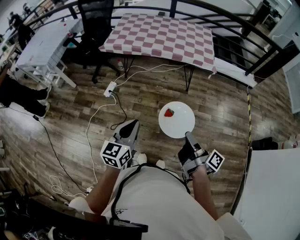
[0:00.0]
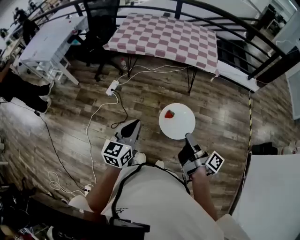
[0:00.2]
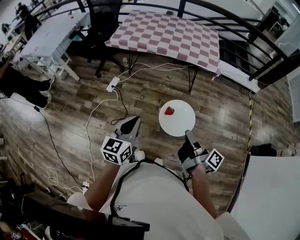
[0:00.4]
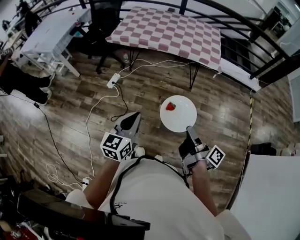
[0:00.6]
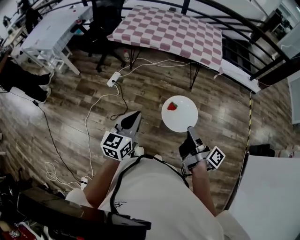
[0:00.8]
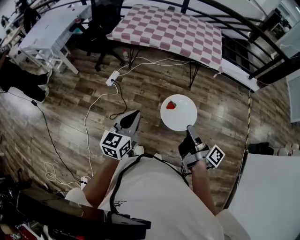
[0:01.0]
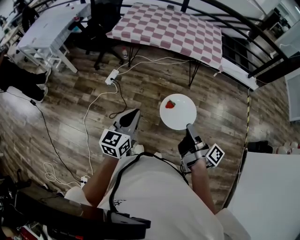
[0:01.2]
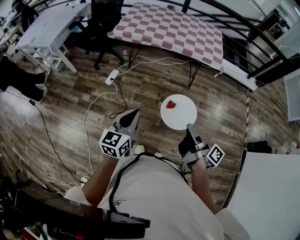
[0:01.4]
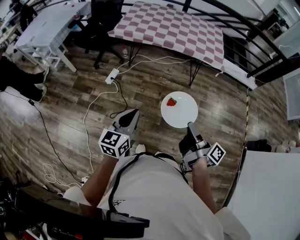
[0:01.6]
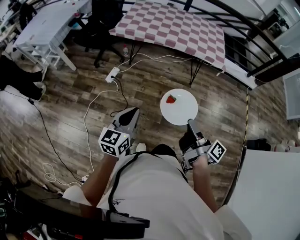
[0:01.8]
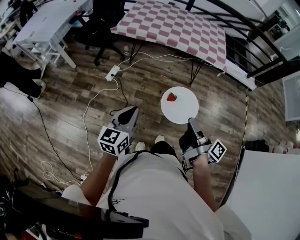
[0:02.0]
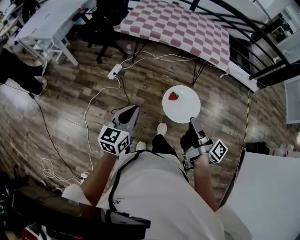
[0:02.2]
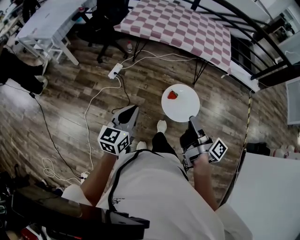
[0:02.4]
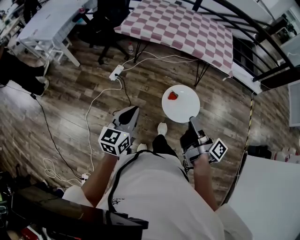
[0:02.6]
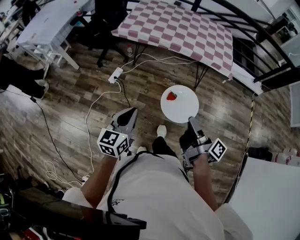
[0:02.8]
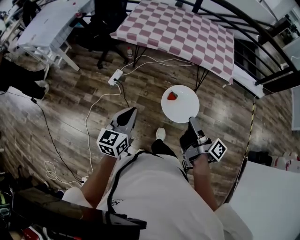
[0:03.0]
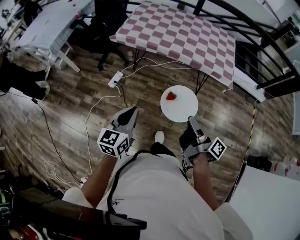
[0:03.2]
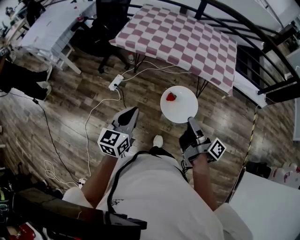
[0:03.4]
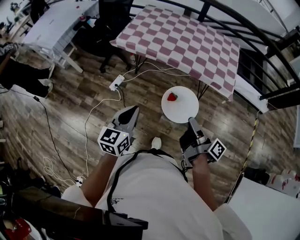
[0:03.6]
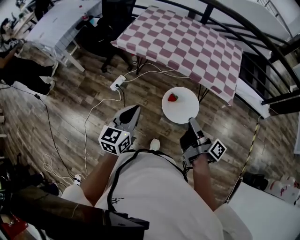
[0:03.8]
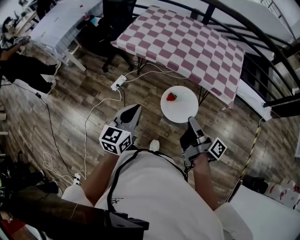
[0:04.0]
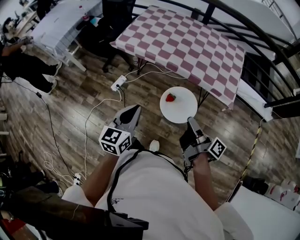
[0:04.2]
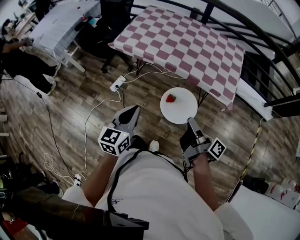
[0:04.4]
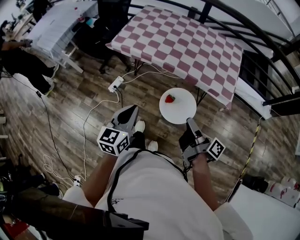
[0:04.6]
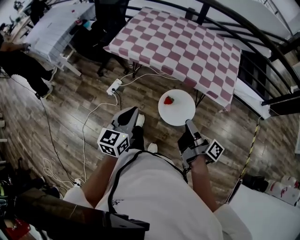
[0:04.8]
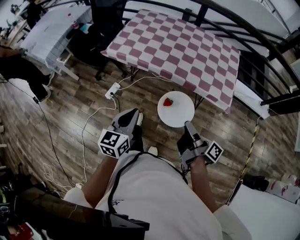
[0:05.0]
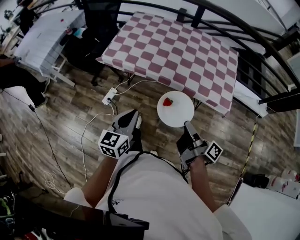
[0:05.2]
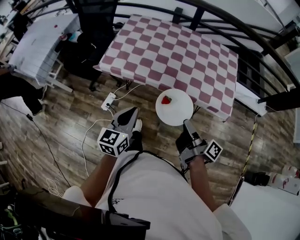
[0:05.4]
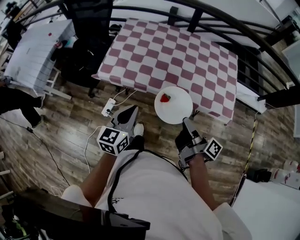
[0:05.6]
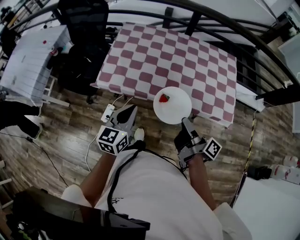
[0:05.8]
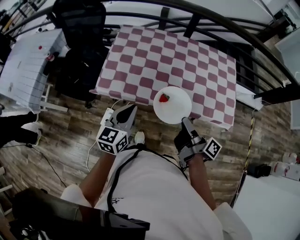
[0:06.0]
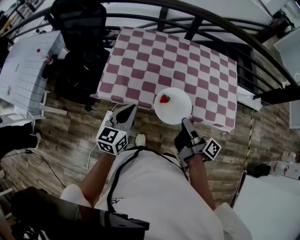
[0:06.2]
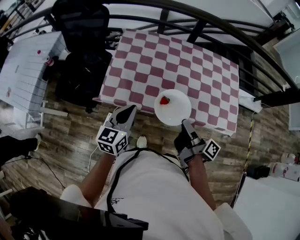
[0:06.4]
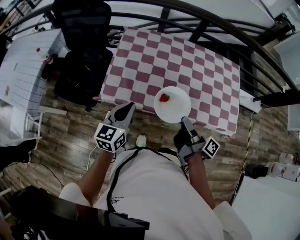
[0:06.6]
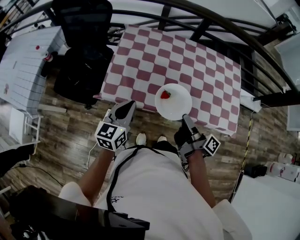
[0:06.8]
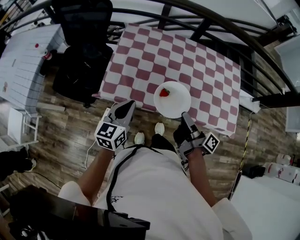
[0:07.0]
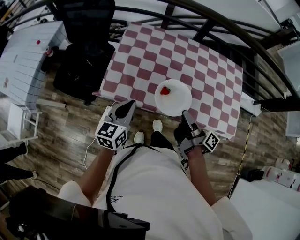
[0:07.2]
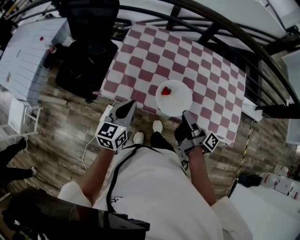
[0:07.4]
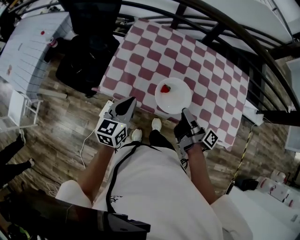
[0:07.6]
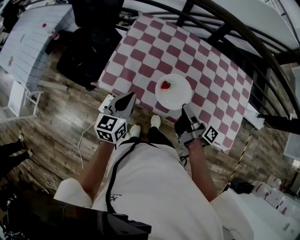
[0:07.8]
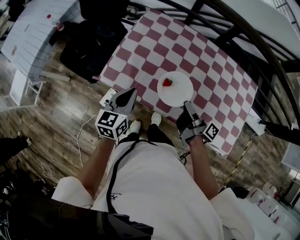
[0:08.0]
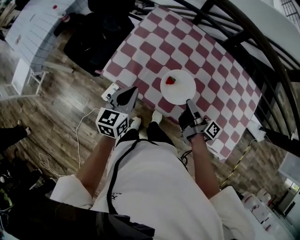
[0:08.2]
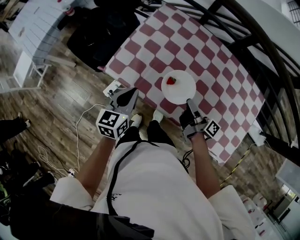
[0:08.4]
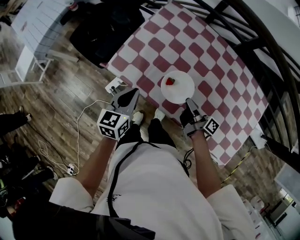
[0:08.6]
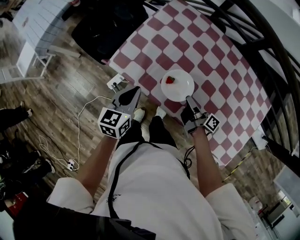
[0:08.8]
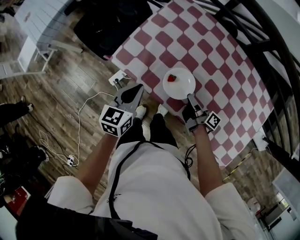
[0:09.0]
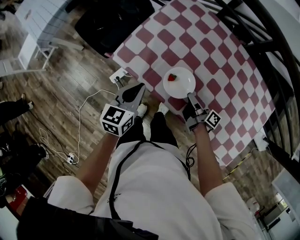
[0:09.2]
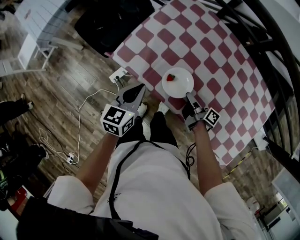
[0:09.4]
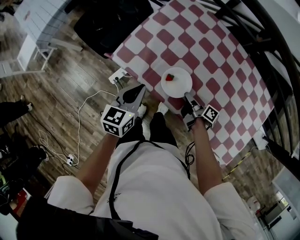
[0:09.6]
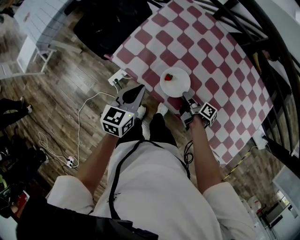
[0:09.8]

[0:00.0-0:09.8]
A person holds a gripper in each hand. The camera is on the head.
0:00.0 to 0:01.4: The left gripper moves about 5 cm.
0:01.4 to 0:02.8: The left gripper changes place by about 10 cm.
0:02.8 to 0:04.2: The left gripper moves some 25 cm.
0:04.2 to 0:05.6: The left gripper ends up some 30 cm from where it was.
0:05.6 to 0:07.0: The left gripper shifts by some 25 cm.
0:07.0 to 0:08.4: The left gripper heads downward, covering roughly 5 cm, and changes its angle by about 20 degrees.

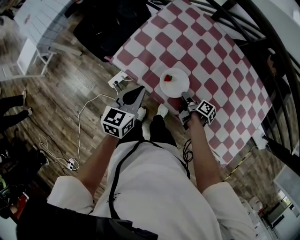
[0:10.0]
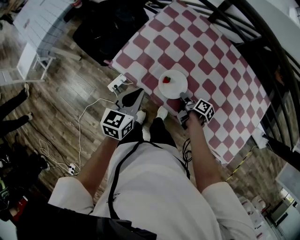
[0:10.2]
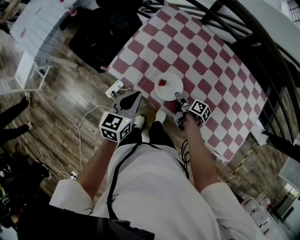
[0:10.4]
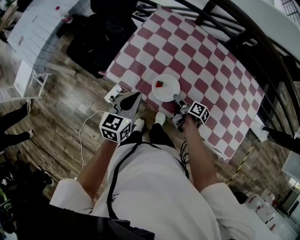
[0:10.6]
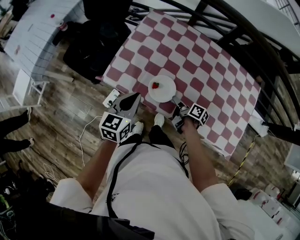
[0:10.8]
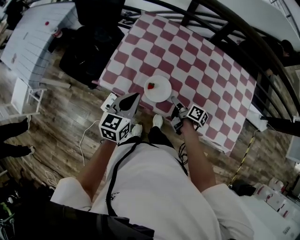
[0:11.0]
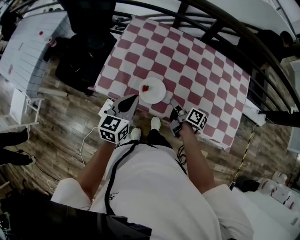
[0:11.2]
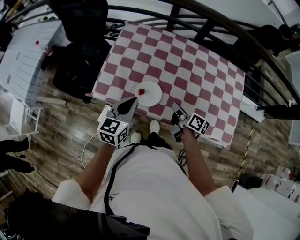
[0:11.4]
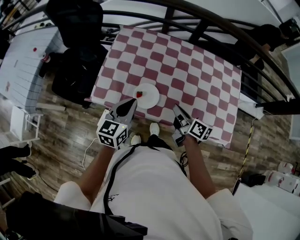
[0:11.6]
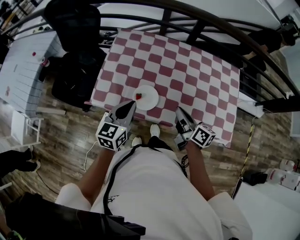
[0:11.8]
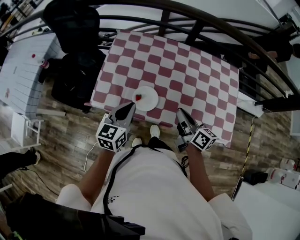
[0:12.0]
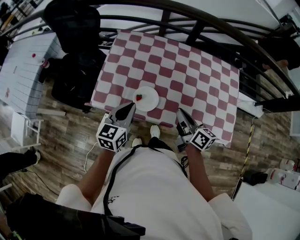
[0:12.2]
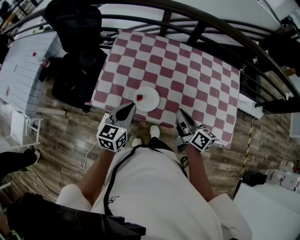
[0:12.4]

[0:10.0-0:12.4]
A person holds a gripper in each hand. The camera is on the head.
0:10.0 to 0:11.2: The left gripper ends up some 10 cm from where it was.

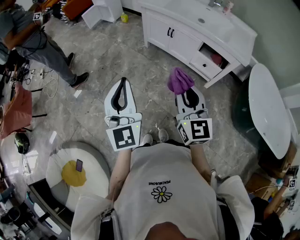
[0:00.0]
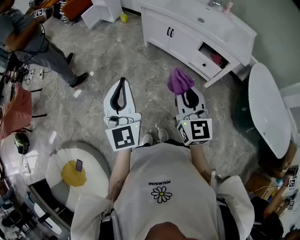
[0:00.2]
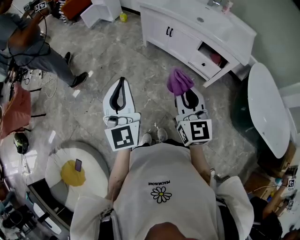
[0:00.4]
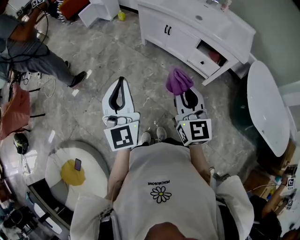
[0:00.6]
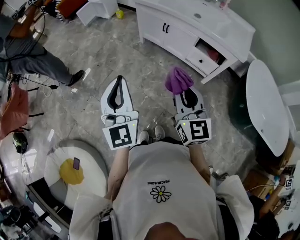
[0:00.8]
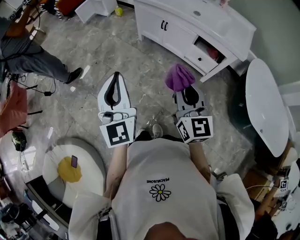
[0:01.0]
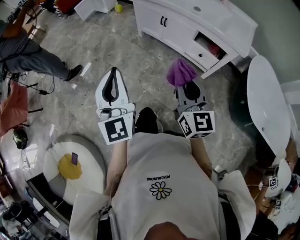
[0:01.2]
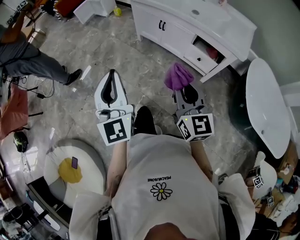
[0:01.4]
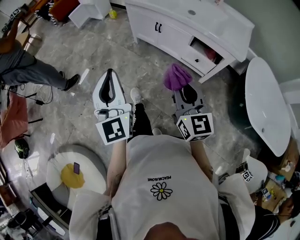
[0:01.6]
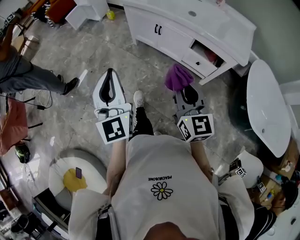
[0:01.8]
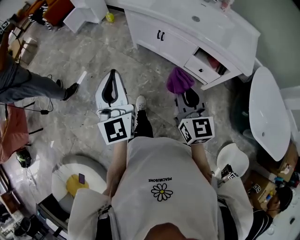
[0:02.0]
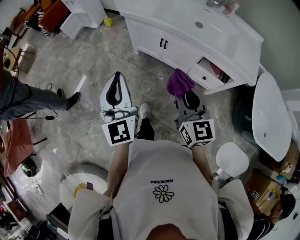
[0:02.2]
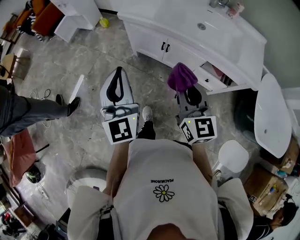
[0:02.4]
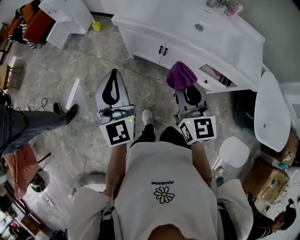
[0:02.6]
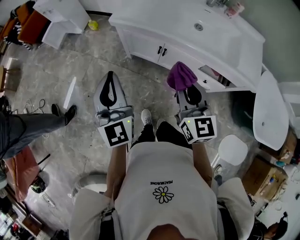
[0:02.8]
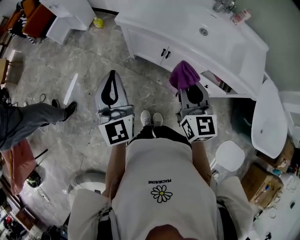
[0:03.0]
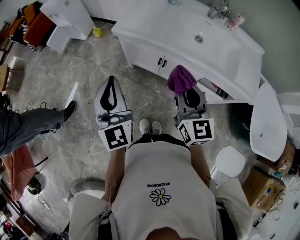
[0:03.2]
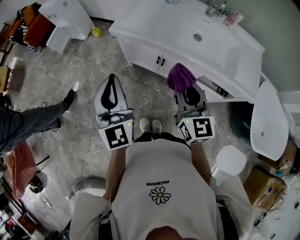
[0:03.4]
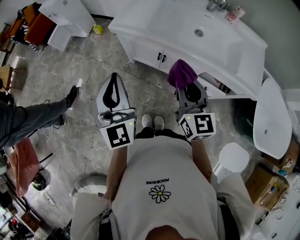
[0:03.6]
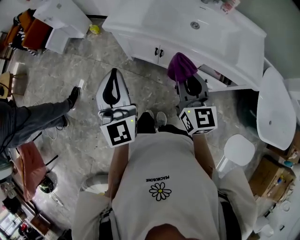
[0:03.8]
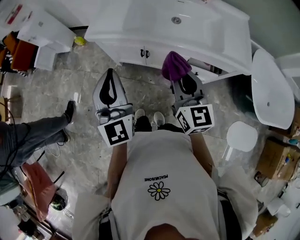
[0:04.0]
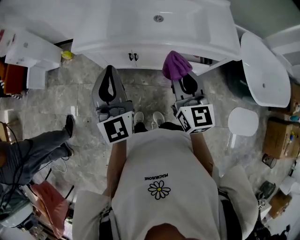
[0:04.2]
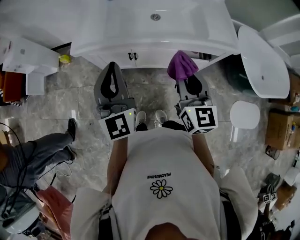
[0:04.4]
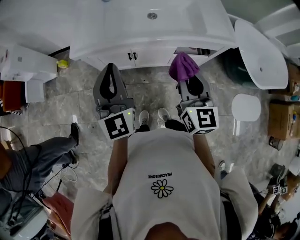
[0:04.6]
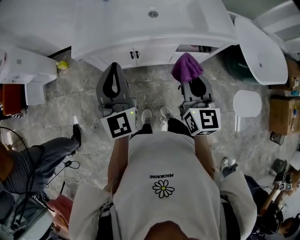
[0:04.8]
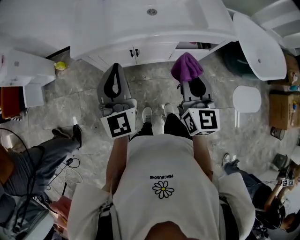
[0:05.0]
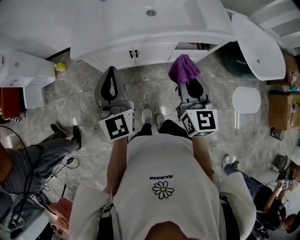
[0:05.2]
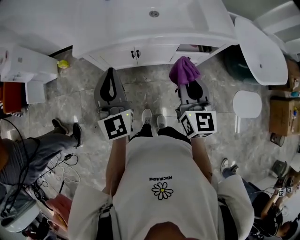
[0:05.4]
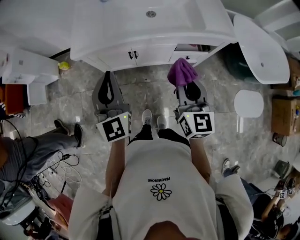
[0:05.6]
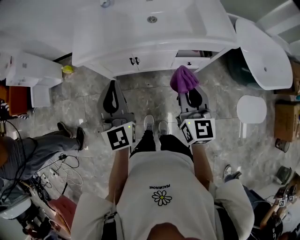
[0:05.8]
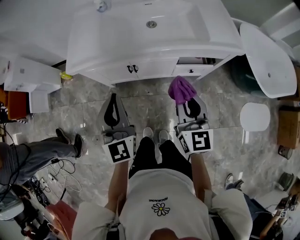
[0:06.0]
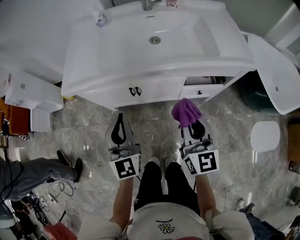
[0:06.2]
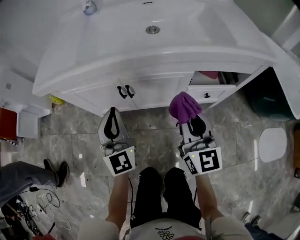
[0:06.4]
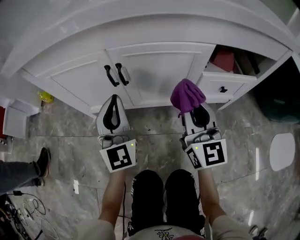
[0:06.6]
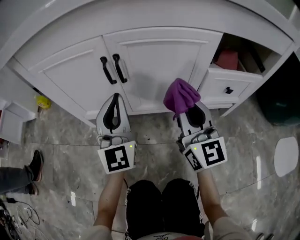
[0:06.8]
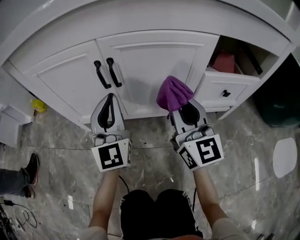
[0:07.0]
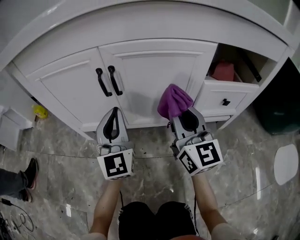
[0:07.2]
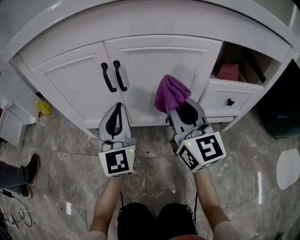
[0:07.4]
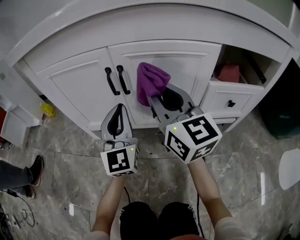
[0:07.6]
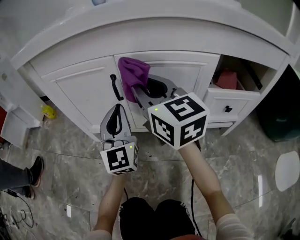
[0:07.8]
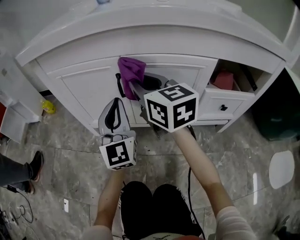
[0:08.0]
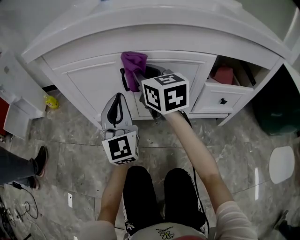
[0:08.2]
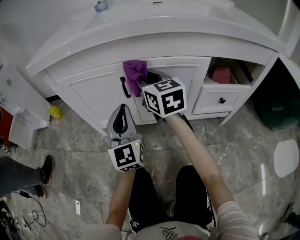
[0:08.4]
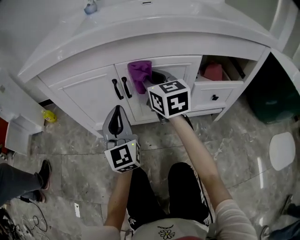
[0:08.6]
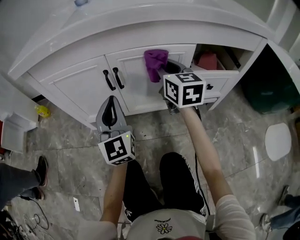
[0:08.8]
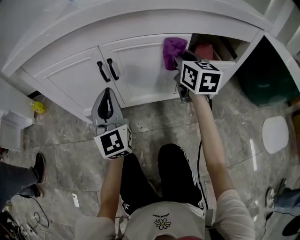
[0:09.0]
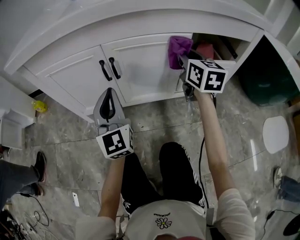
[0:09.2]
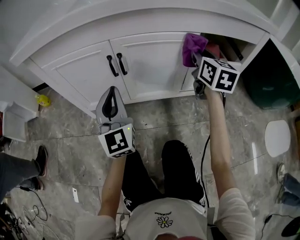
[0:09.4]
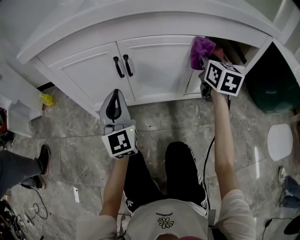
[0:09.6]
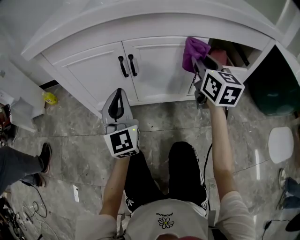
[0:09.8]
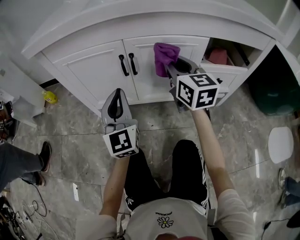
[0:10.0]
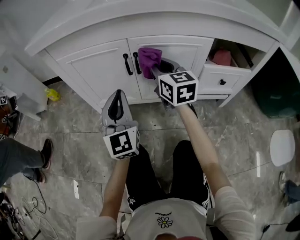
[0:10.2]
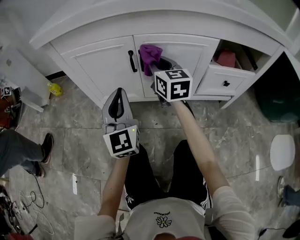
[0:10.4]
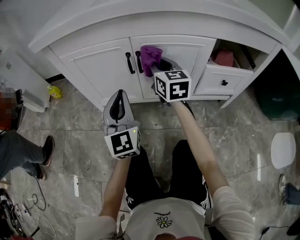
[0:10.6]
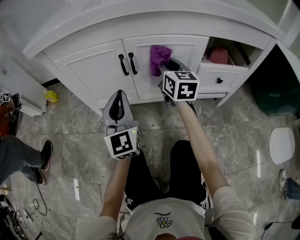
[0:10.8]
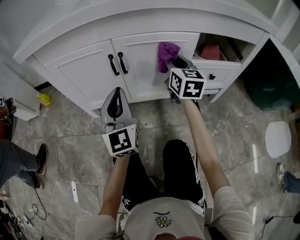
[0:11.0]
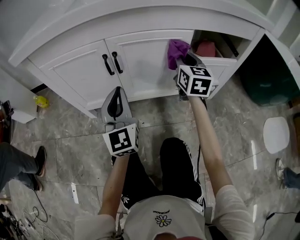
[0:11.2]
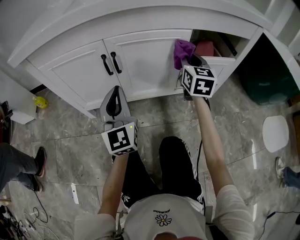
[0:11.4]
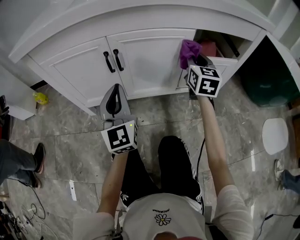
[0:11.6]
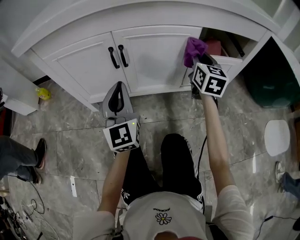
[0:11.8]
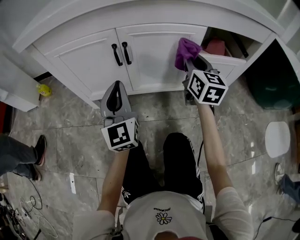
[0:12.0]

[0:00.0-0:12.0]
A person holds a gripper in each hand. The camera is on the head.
0:00.0 to 0:01.6: The right gripper moves to the right and forward, about 10 cm. The left gripper goes some 10 cm forward and to the right.
0:01.6 to 0:03.0: Both grippers travel together forward, approximately 40 cm.
0:03.0 to 0:04.4: The right gripper shifts by about 10 cm, and swivels approximately 30 degrees; the left gripper changes place by roughly 15 cm, and changes its angle by about 30 degrees.
0:04.4 to 0:06.0: The grippers both shift downward by approximately 10 cm.
0:06.0 to 0:07.6: The left gripper shifts some 50 cm downward. Meanwhile the right gripper is displaced downward and forward by roughly 40 cm, and changes its angle by approximately 20 degrees.
0:07.6 to 0:09.0: The left gripper moves upward, approximately 5 cm, while the right gripper travels to the right by some 15 cm, and turns by roughly 30 degrees.
0:09.0 to 0:10.4: The left gripper shifts about 5 cm to the left. The right gripper heads to the left, covering some 20 cm.
0:10.4 to 0:12.0: The right gripper is displaced to the right by about 15 cm.
